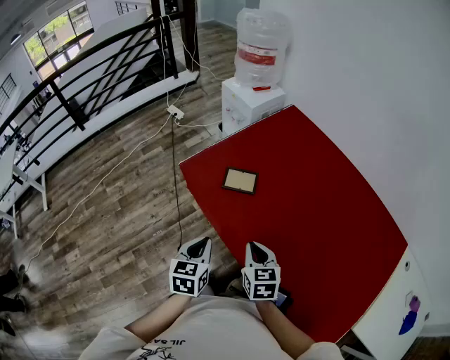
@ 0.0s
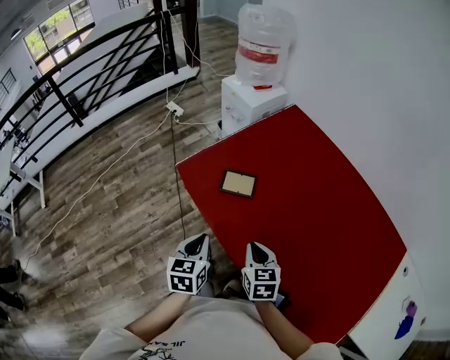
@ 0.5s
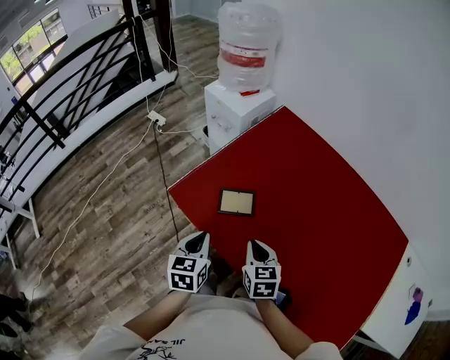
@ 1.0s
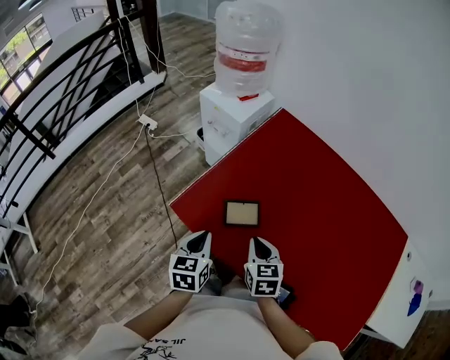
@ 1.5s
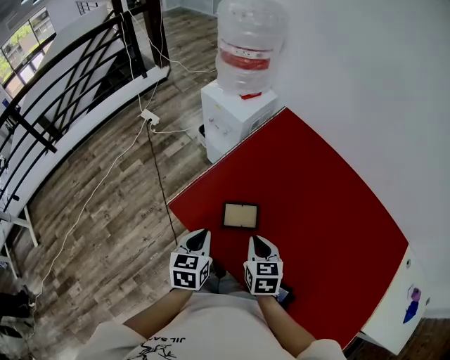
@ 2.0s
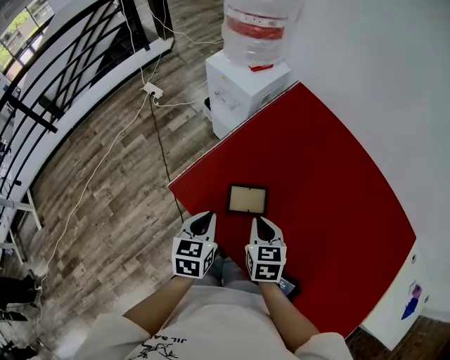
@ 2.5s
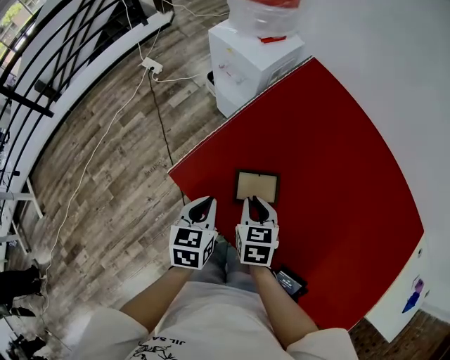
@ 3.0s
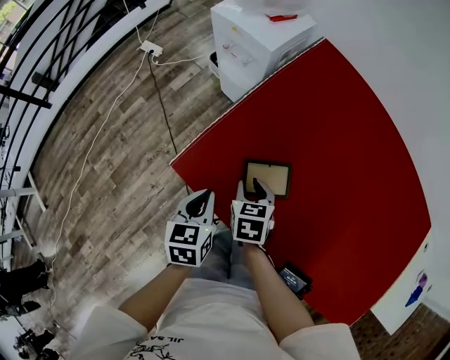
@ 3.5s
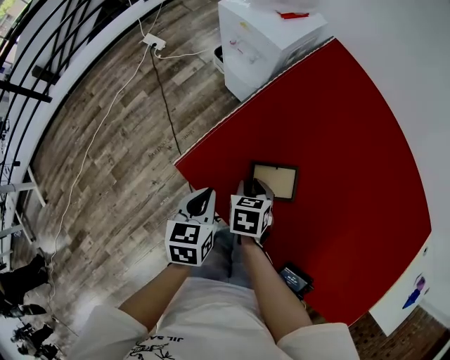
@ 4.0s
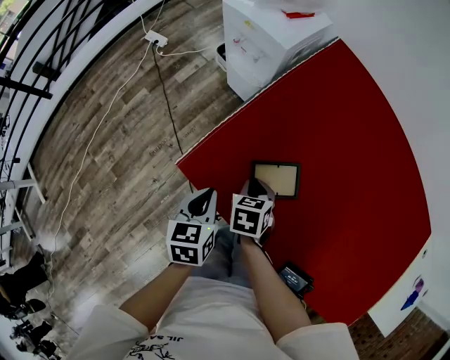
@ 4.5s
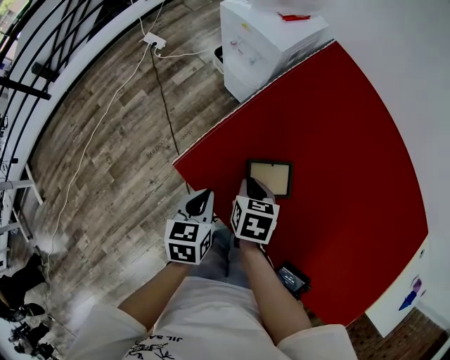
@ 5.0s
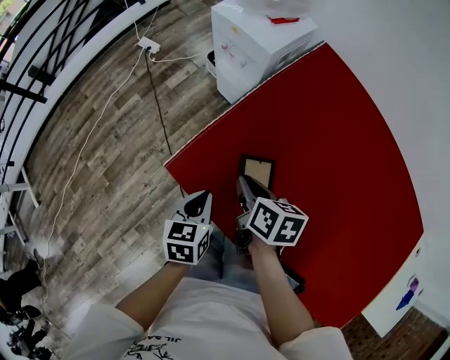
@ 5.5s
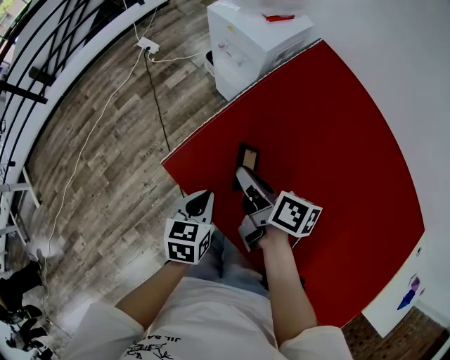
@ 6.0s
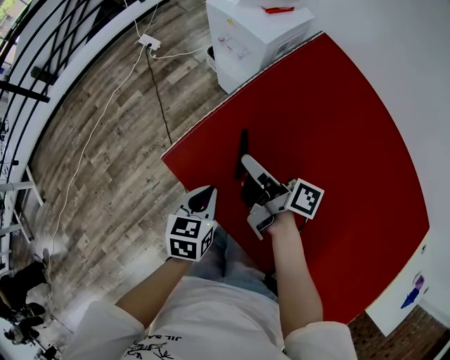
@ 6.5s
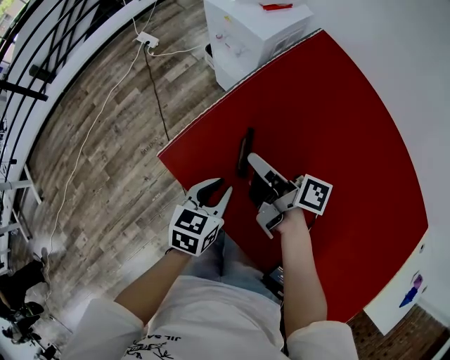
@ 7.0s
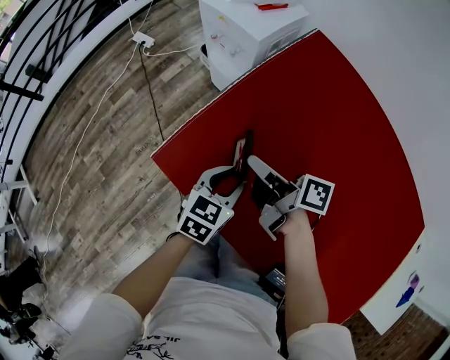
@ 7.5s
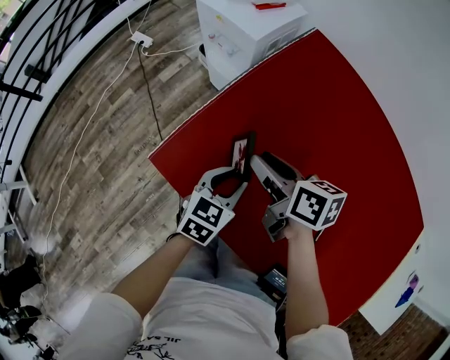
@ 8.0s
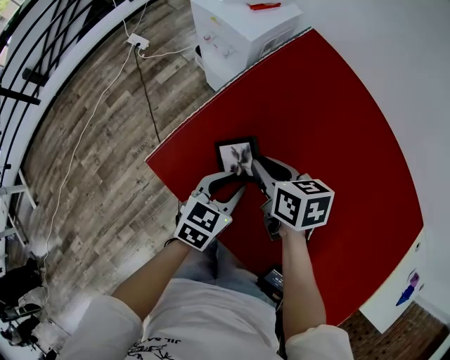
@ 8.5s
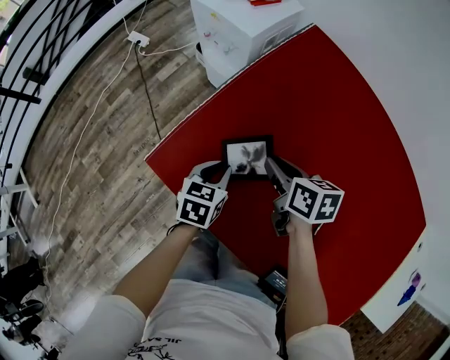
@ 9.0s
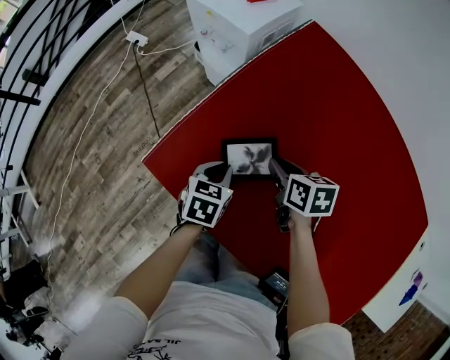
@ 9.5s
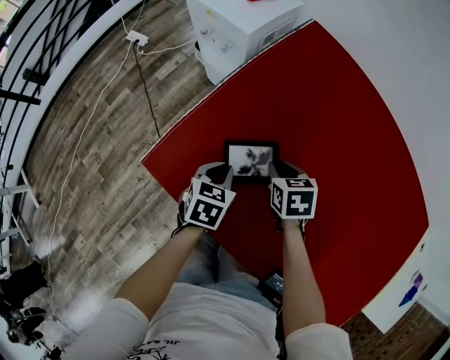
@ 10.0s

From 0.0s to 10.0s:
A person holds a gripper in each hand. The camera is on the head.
From 0.0s to 2.0s: The two grippers go approximately 20 cm forward.
From 2.0s to 4.0s: The right gripper heads downward, to the left and forward, covering roughly 20 cm, turns by roughly 20 degrees, and opens its fingers. Meanwhile the left gripper moves downward, to the left and forward, roughly 15 cm.
From 4.0s to 6.0s: The right gripper moves upward, about 15 cm, and points its fingers some 40 degrees further upward.
From 6.0s to 8.0s: The left gripper heads to the right, covering roughly 10 cm, changes its angle by some 30 degrees, and opens its fingers; the right gripper shifts roughly 5 cm to the right, and opens up.
From 8.0s to 10.0s: The right gripper shifts roughly 15 cm downward and to the right, and tilts its fingers some 30 degrees downward; the left gripper shifts approximately 5 cm downward.

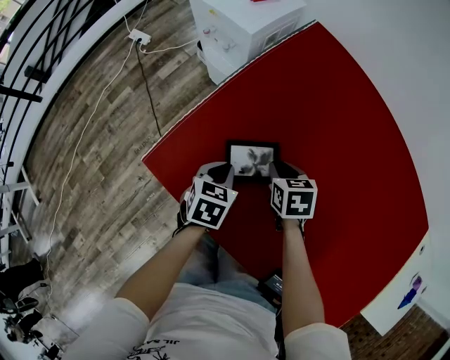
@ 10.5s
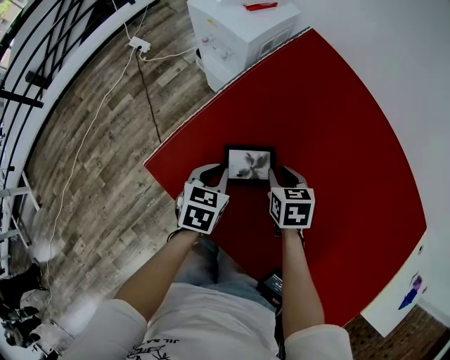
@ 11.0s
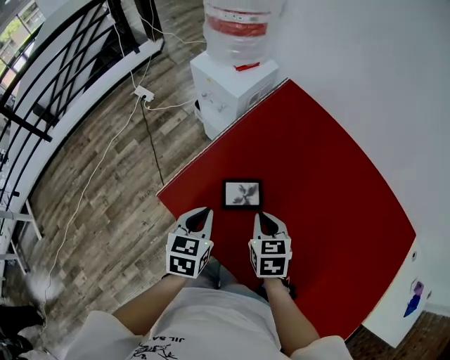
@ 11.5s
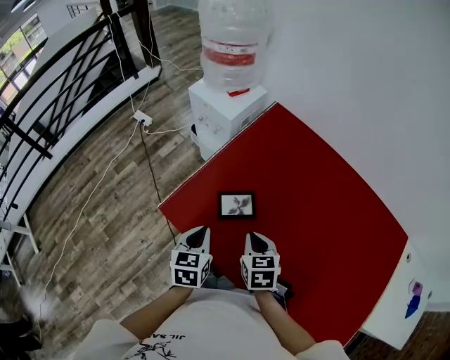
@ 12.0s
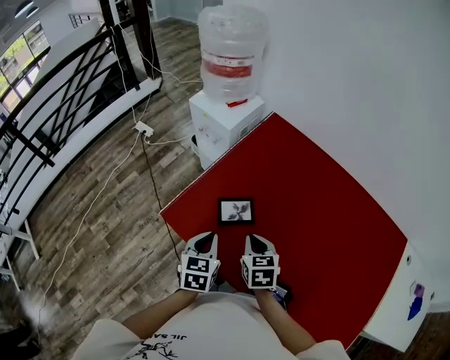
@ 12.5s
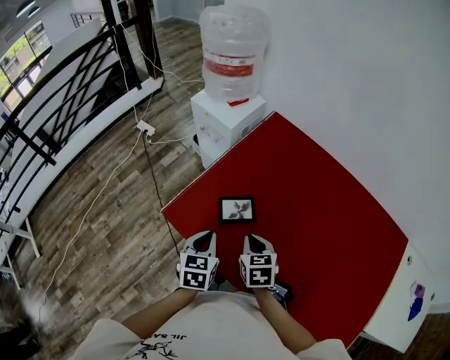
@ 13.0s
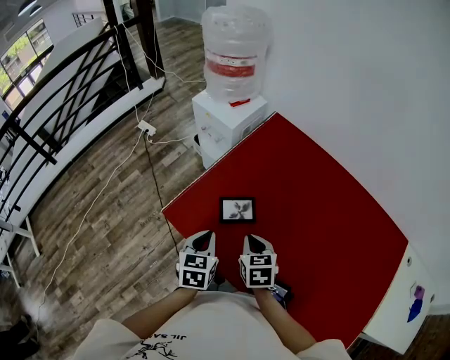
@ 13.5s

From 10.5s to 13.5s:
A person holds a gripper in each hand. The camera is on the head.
From 10.5s to 12.0s: The grippers both shift upward and backward by about 20 cm. The left gripper swivels about 20 degrees.
From 12.0s to 13.5s: The grippers stay close to where they were, moving slightly.

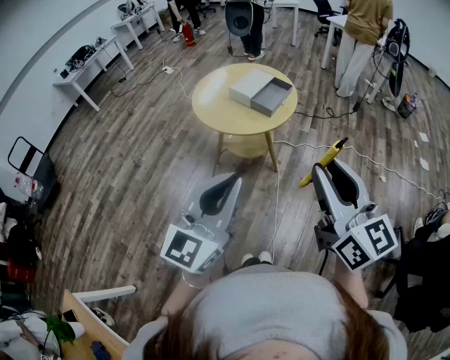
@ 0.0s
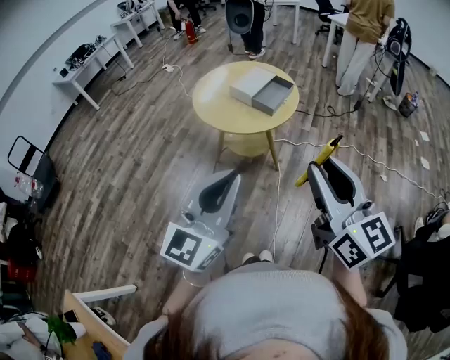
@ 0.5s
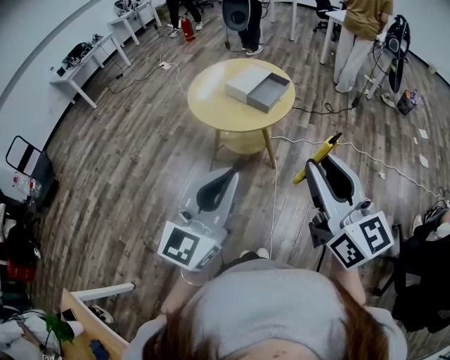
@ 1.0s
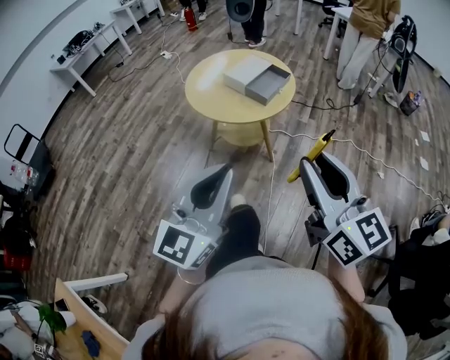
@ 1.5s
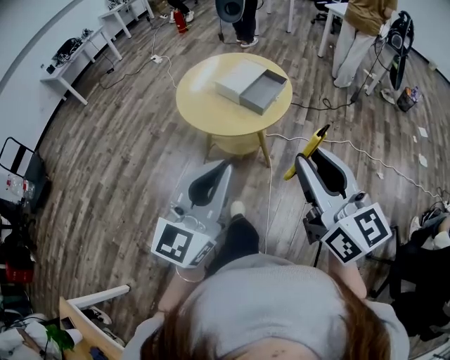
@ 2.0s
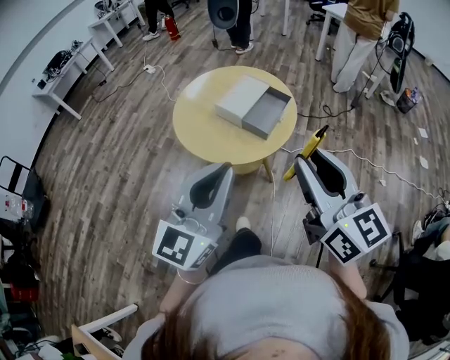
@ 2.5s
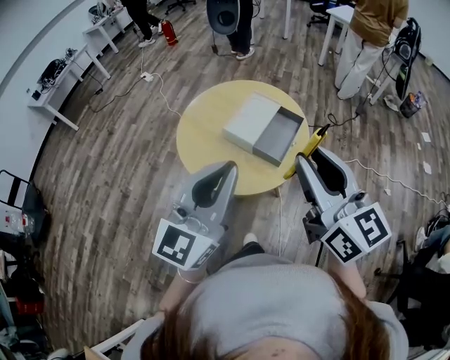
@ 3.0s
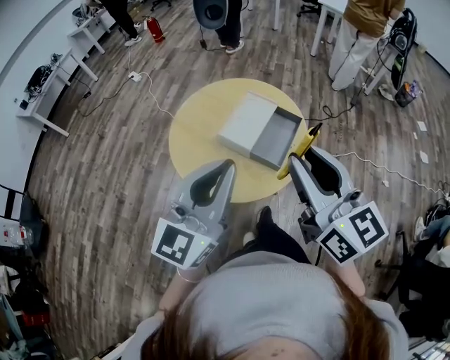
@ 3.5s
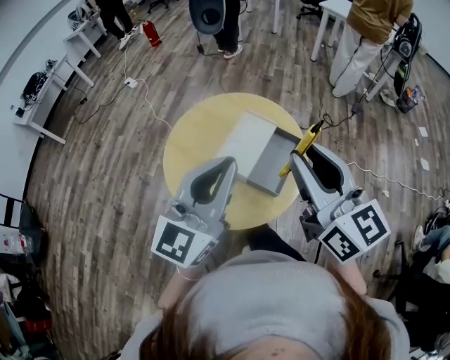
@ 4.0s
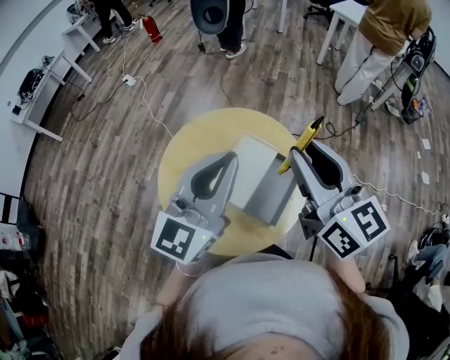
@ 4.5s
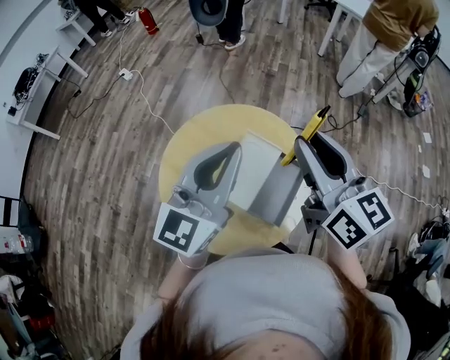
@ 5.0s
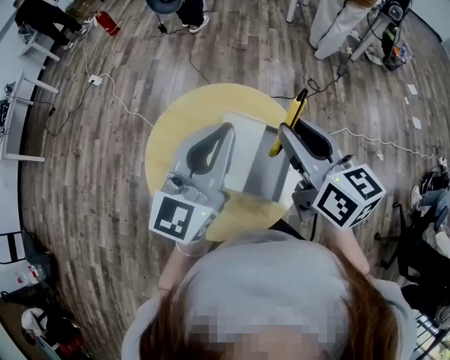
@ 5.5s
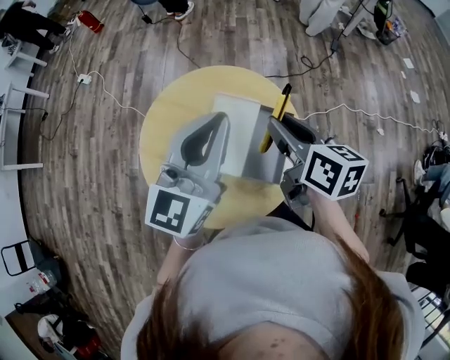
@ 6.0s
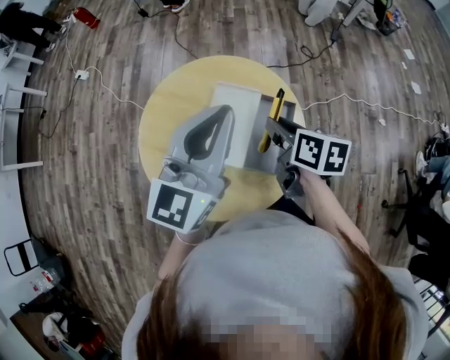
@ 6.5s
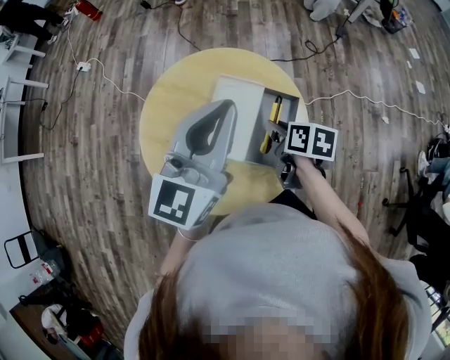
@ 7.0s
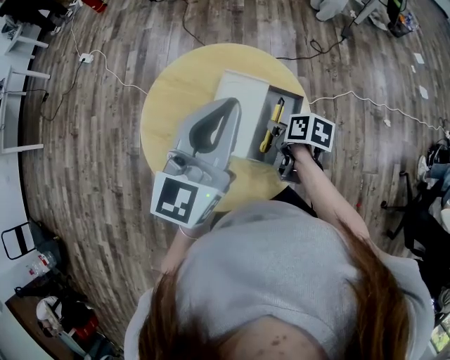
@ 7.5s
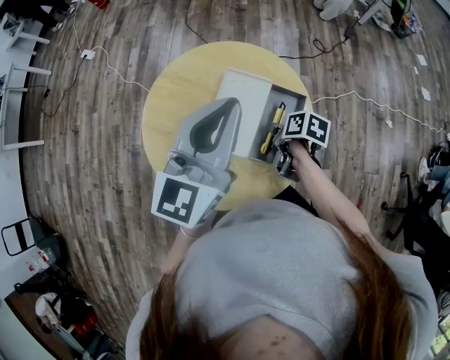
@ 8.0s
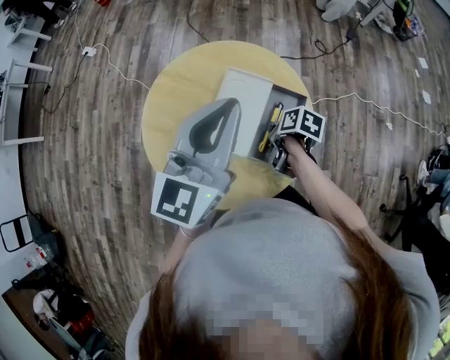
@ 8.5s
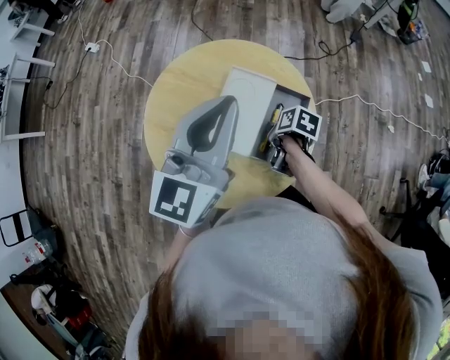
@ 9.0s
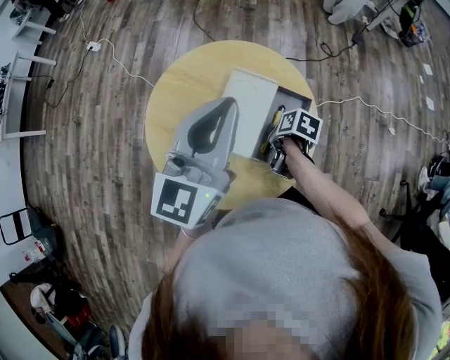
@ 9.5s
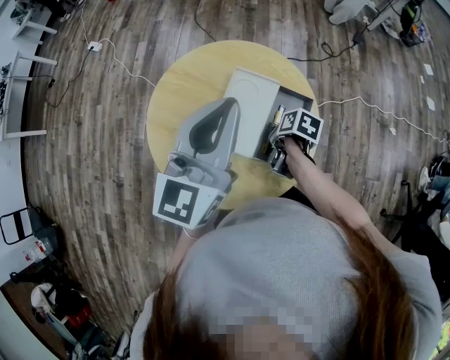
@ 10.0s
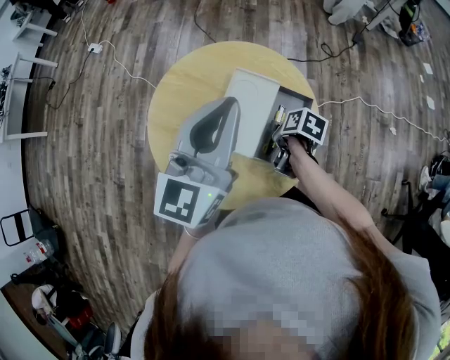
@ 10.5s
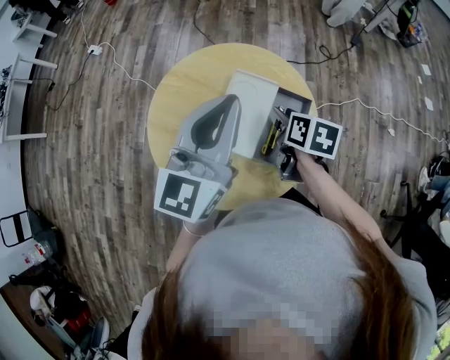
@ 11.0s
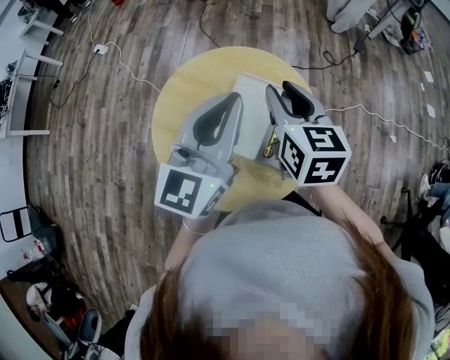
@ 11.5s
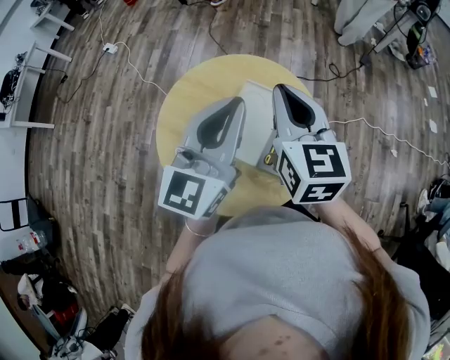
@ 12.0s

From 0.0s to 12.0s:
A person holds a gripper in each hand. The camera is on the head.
From 0.0s to 2.0s: The grippers both shift forward by roughly 10 cm.
From 2.0s to 4.0s: Both grippers move forward, roughly 35 cm.
From 4.0s to 6.0s: The right gripper shifts roughly 20 cm downward and forward, and changes its angle by some 40 degrees; the left gripper shifts some 15 cm forward.
From 6.0s to 8.0s: The right gripper heads downward, covering about 25 cm, and tilts its fingers about 30 degrees downward.
From 8.0s to 10.0s: The grippers stay close to where they were, moving slightly.
From 10.0s to 12.0s: The right gripper goes roughly 30 cm upward, tips its fingers upward by approximately 50 degrees, and closes.

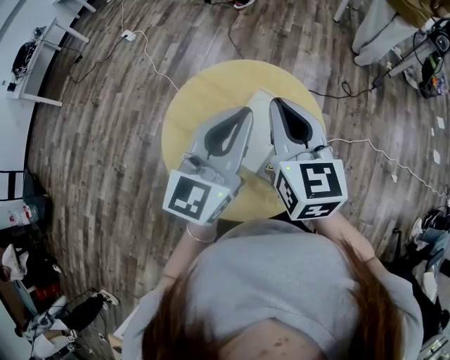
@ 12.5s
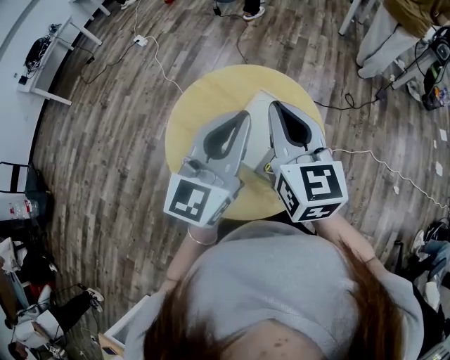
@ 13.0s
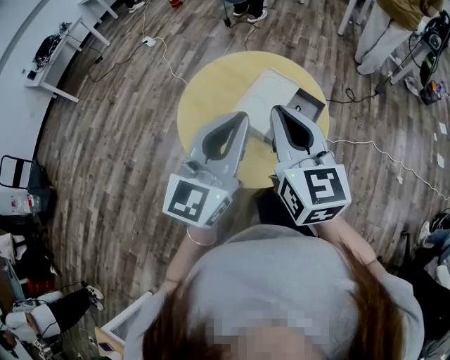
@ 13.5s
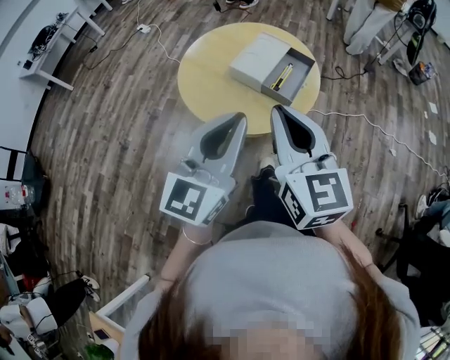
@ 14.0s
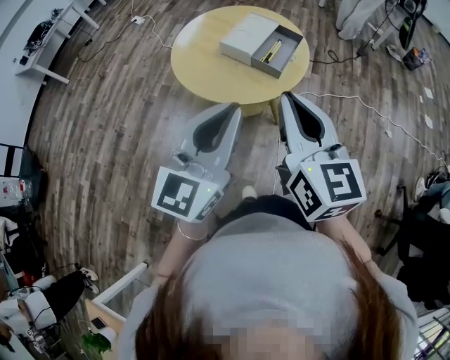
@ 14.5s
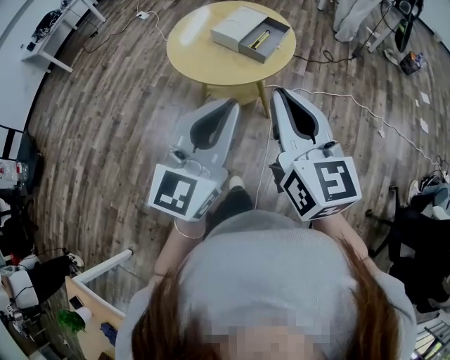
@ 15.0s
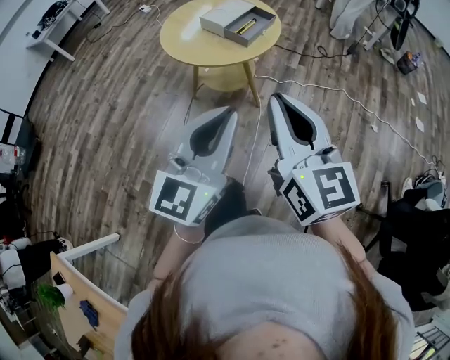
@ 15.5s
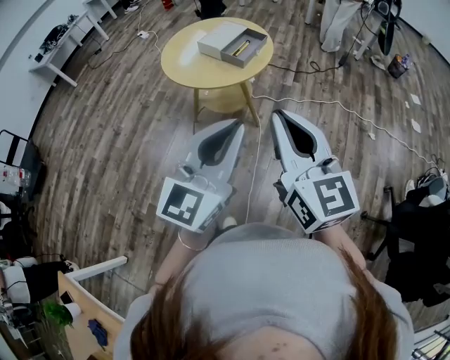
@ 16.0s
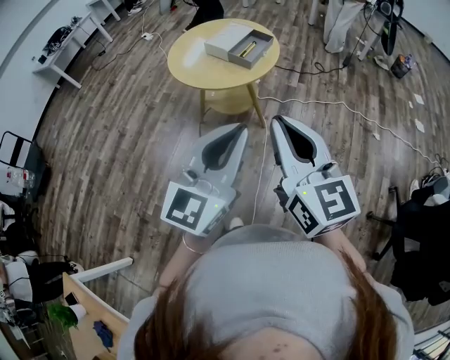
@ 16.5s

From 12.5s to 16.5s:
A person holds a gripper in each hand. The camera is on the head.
From 12.5s to 14.5s: The two grippers go about 40 cm backward.
From 14.5s to 16.5s: The two grippers go roughly 25 cm backward and to the right.
